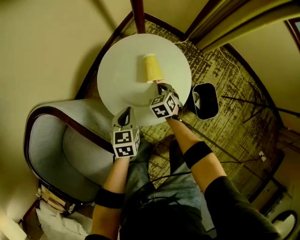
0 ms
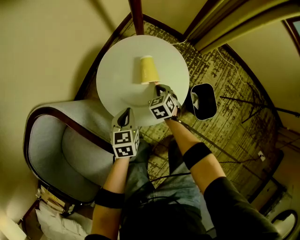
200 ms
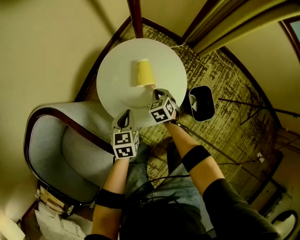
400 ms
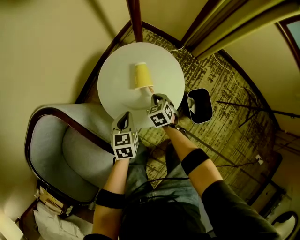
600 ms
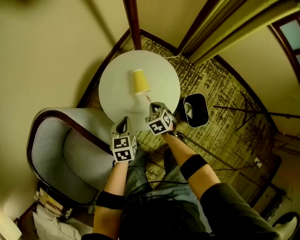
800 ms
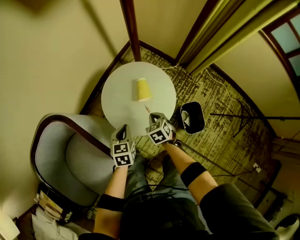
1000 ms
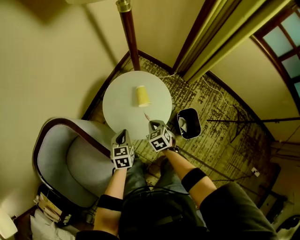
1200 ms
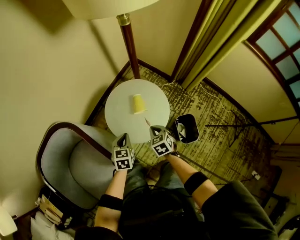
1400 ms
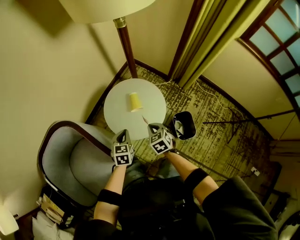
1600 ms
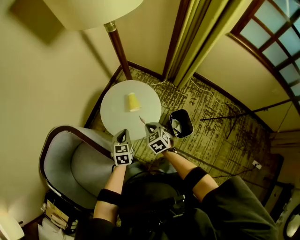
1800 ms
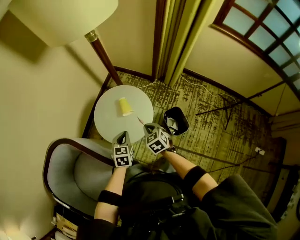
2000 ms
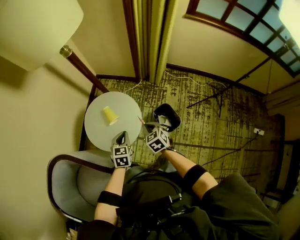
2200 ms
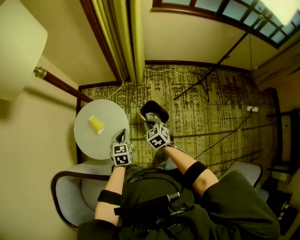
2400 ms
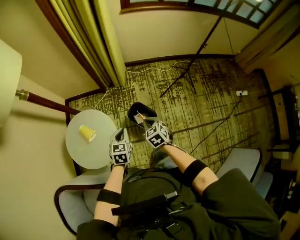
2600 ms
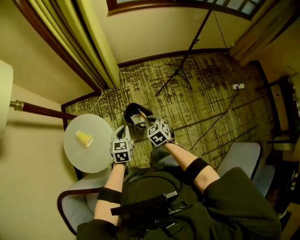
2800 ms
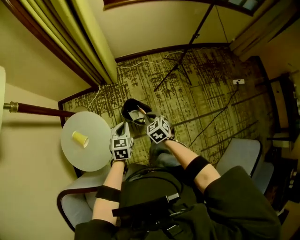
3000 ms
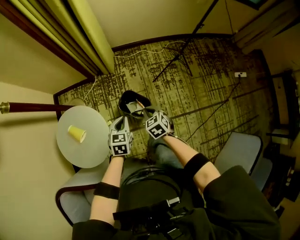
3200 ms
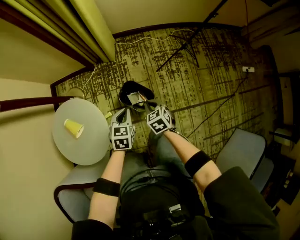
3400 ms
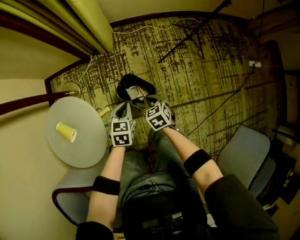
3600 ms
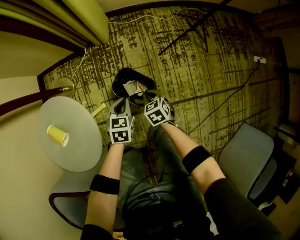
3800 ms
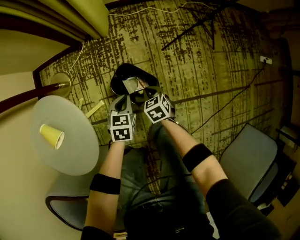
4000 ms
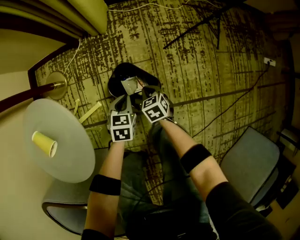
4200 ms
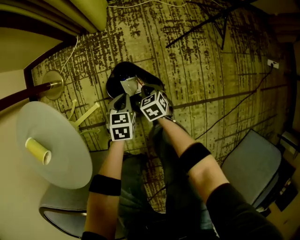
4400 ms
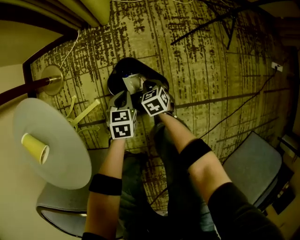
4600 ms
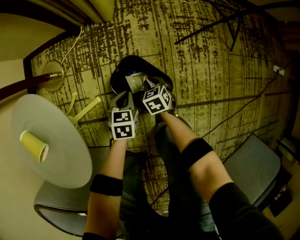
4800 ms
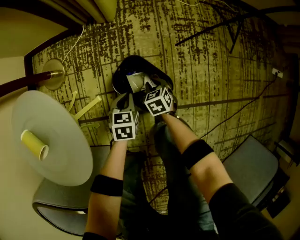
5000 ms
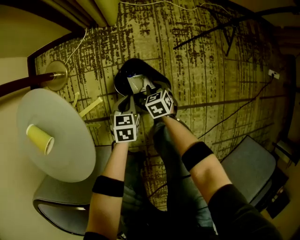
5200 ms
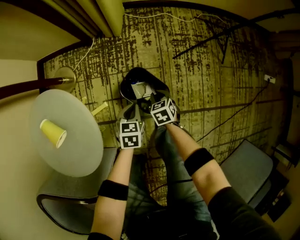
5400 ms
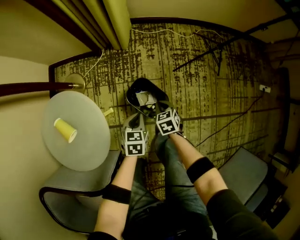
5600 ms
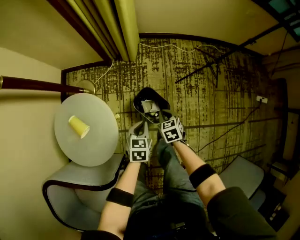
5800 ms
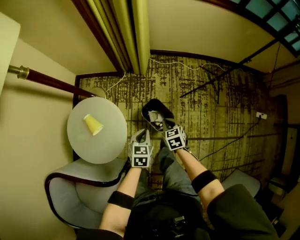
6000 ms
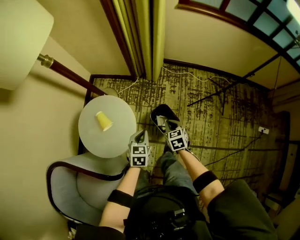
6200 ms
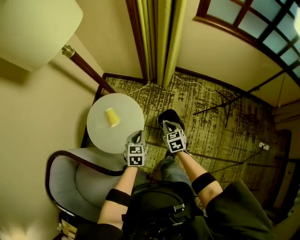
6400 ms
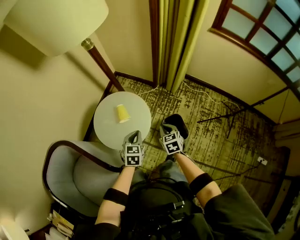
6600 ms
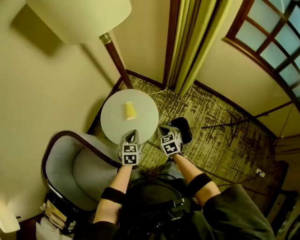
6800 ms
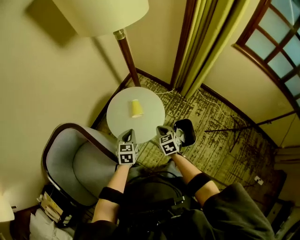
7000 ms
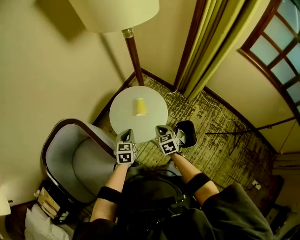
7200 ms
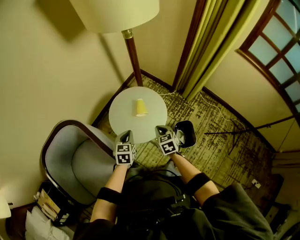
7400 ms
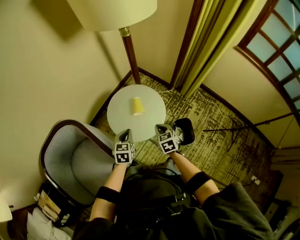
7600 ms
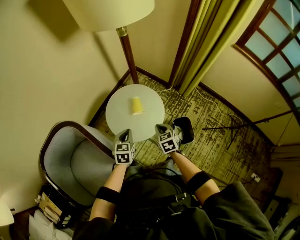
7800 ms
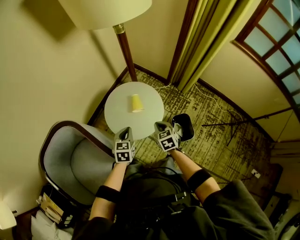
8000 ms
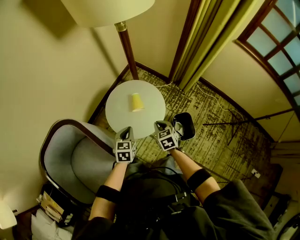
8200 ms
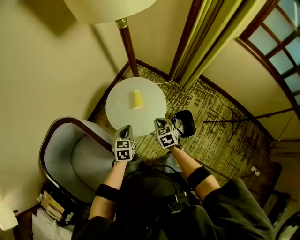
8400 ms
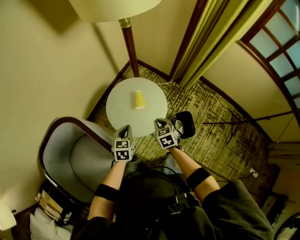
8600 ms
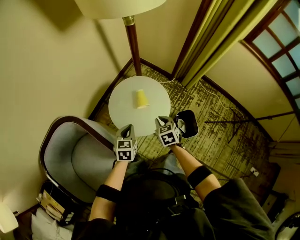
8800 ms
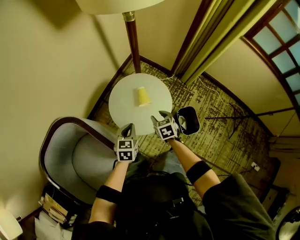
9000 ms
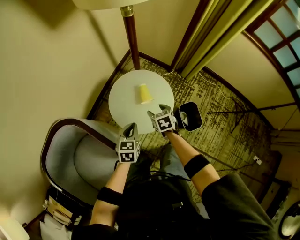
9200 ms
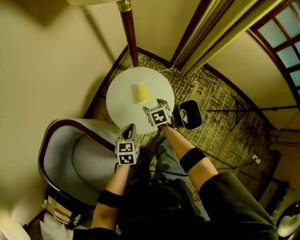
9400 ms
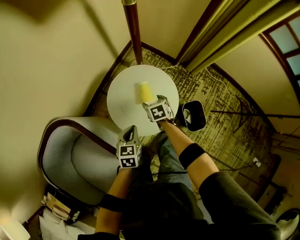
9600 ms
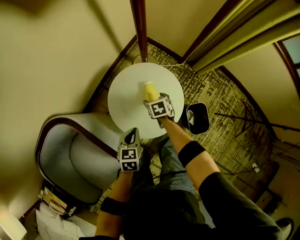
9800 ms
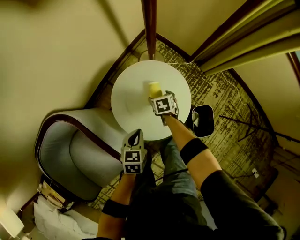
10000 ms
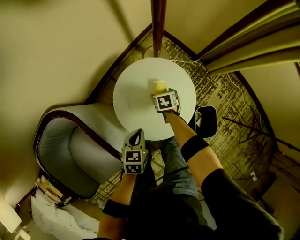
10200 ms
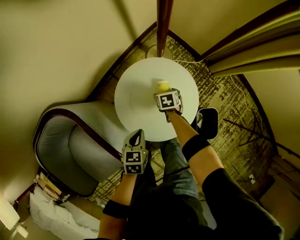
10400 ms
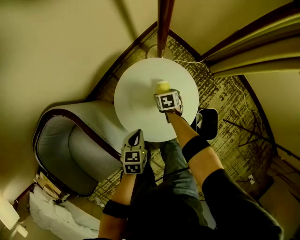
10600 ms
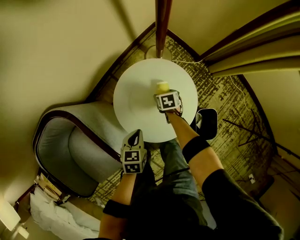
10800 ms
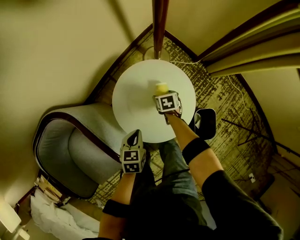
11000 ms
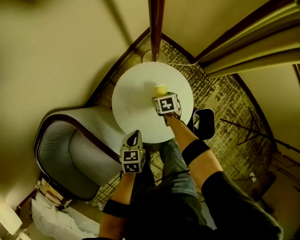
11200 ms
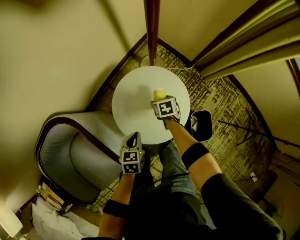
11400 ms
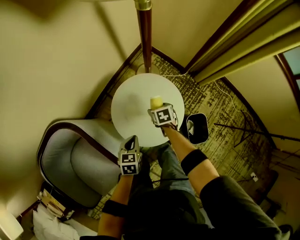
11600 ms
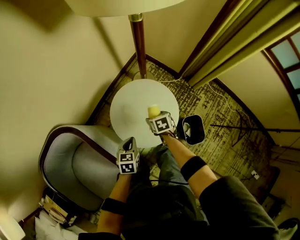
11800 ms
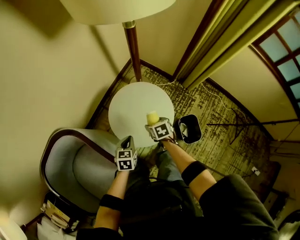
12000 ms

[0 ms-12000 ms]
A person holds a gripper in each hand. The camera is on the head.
0 ms to 1600 ms: The right gripper moves upward and backward, some 30 cm. The left gripper travels upward by about 15 cm.
1600 ms to 3000 ms: The left gripper changes place by approximately 40 cm, and turns by some 50 degrees. The right gripper ends up approximately 40 cm from where it was, and rotates some 40 degrees.
3000 ms to 4400 ms: The grippers both shift downward by roughly 50 cm.
4400 ms to 6000 ms: The two grippers go roughly 35 cm upward.
6000 ms to 7600 ms: The right gripper moves approximately 35 cm, and changes its angle by some 40 degrees. Meanwhile the left gripper moves approximately 40 cm, and turns by about 40 degrees.
7600 ms to 9000 ms: The left gripper changes place by about 5 cm, while the right gripper heads to the left and forward, covering some 10 cm, and opens.
9000 ms to 10400 ms: The left gripper is displaced downward by roughly 15 cm. Meanwhile the right gripper moves downward and forward, approximately 30 cm, and opens.
10400 ms to 12000 ms: The left gripper travels upward by about 10 cm; the right gripper shifts about 25 cm upward and backward.

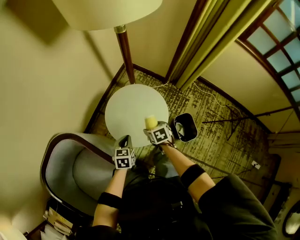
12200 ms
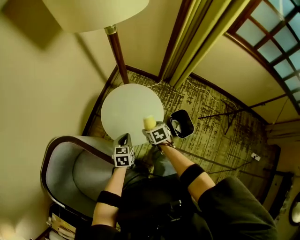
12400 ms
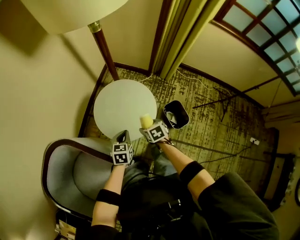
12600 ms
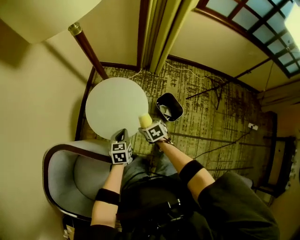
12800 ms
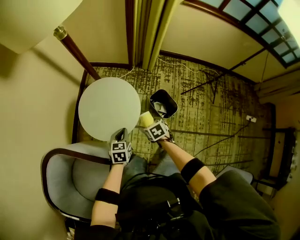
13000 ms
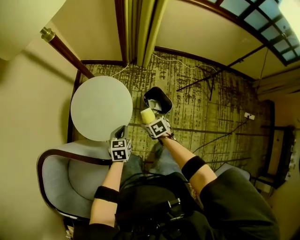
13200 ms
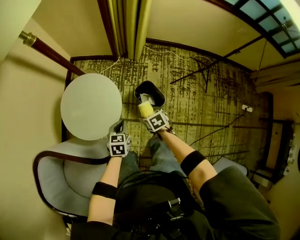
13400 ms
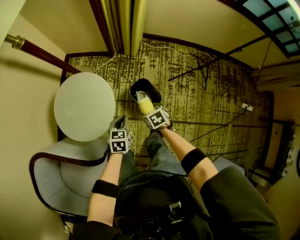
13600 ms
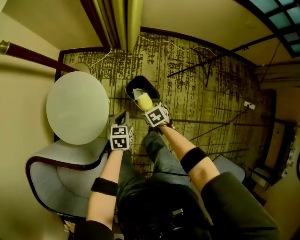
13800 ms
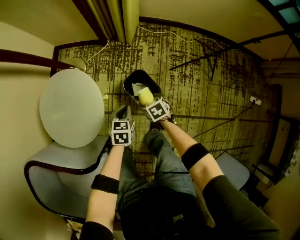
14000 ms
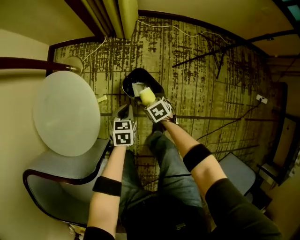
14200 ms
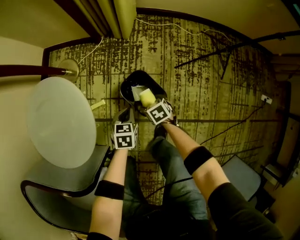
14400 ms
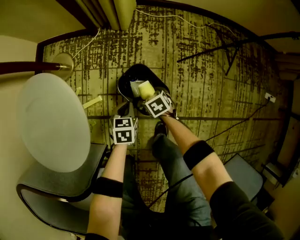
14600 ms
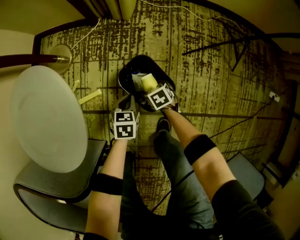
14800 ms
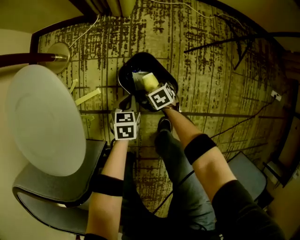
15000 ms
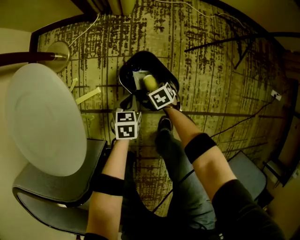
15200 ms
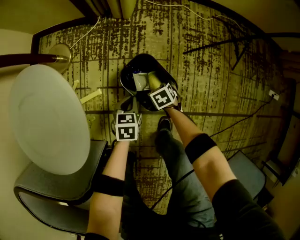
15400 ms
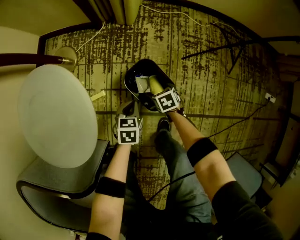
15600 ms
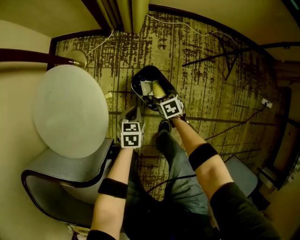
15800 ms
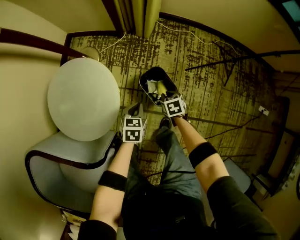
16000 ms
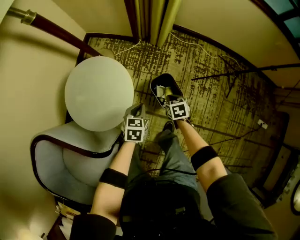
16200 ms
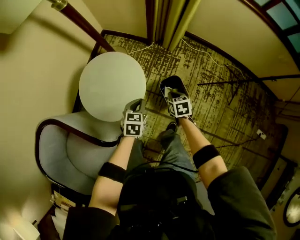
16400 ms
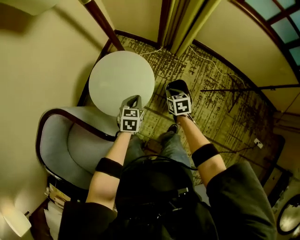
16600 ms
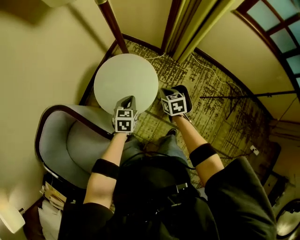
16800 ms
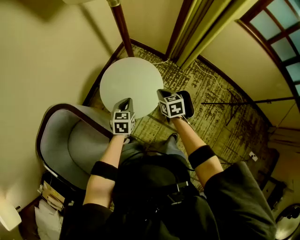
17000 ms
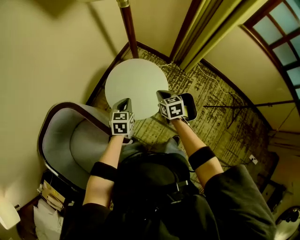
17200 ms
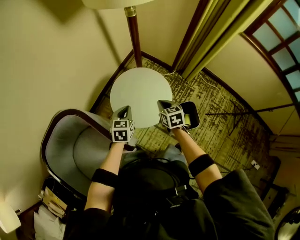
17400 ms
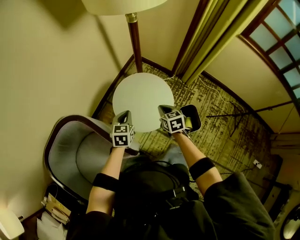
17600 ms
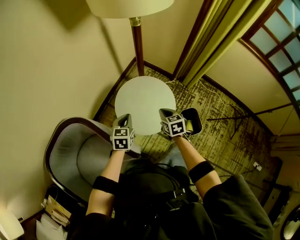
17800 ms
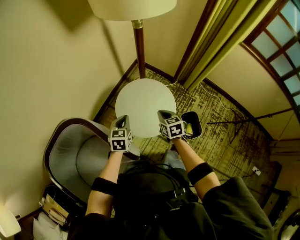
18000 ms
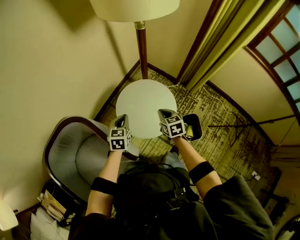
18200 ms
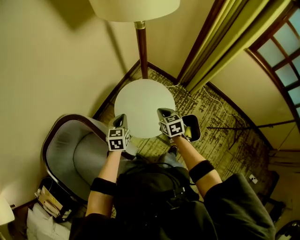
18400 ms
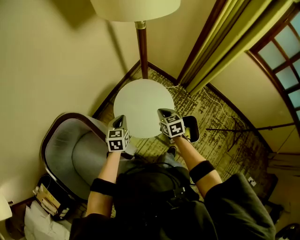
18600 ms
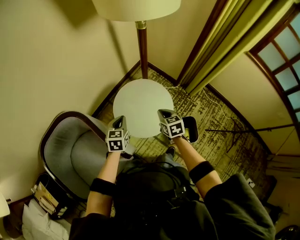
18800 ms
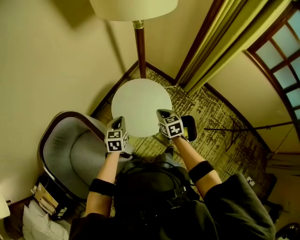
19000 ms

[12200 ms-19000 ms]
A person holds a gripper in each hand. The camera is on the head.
12200 ms to 13600 ms: The grippers both shift to the right by approximately 30 cm. The left gripper changes its angle by roughly 20 degrees.
13600 ms to 15000 ms: The grippers both shift downward by some 40 cm.
15000 ms to 16200 ms: Both grippers move upward, some 35 cm. The right gripper closes.
16200 ms to 17600 ms: The grippers both shift to the left and upward by roughly 40 cm. The left gripper changes its angle by approximately 30 degrees. The right gripper swivels roughly 30 degrees.
17600 ms to 19000 ms: The grippers stay close to where they were, moving slightly.

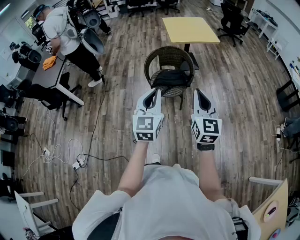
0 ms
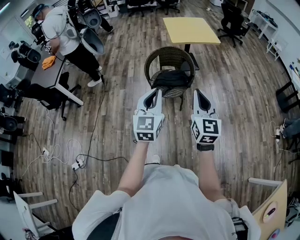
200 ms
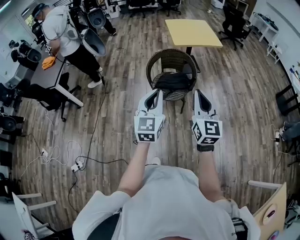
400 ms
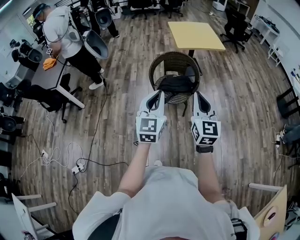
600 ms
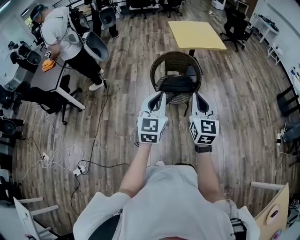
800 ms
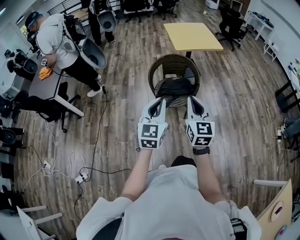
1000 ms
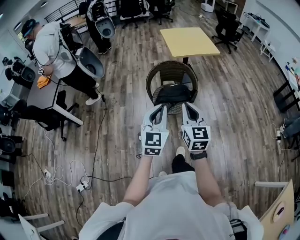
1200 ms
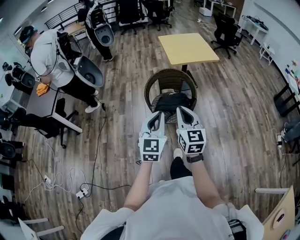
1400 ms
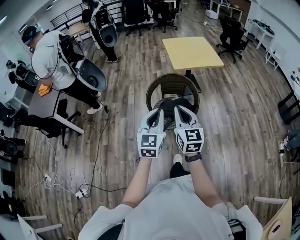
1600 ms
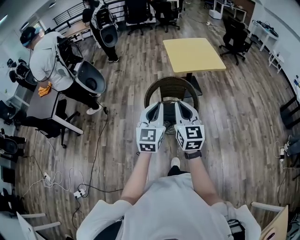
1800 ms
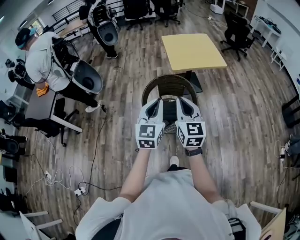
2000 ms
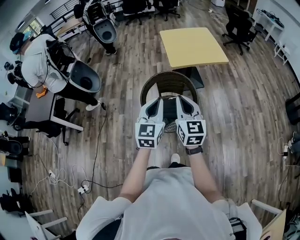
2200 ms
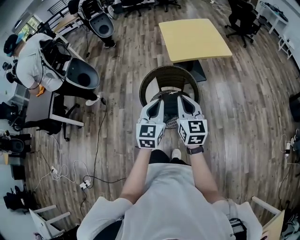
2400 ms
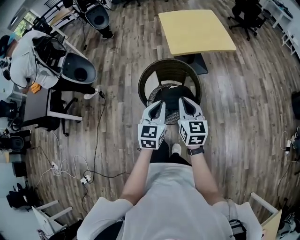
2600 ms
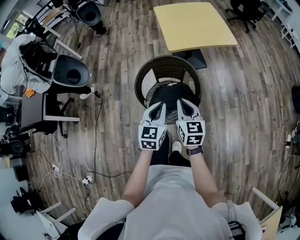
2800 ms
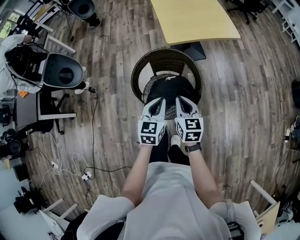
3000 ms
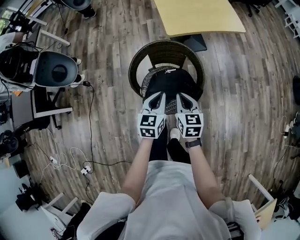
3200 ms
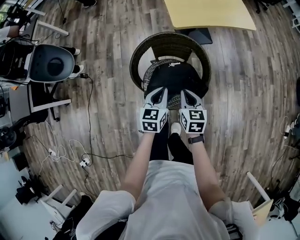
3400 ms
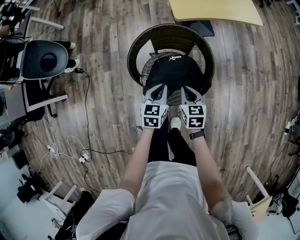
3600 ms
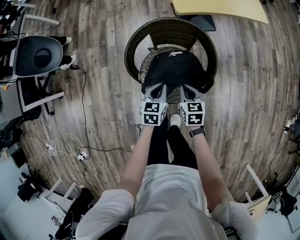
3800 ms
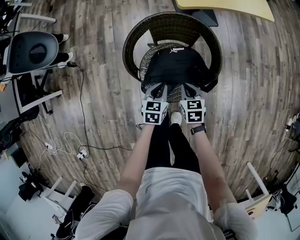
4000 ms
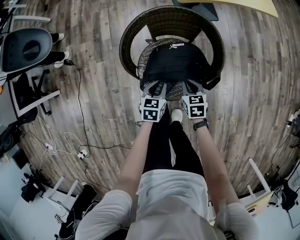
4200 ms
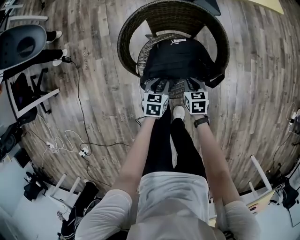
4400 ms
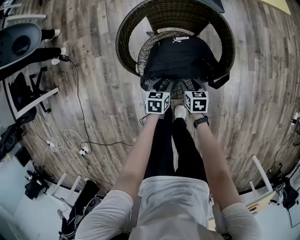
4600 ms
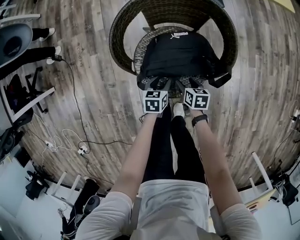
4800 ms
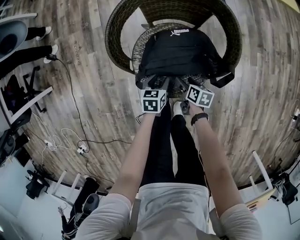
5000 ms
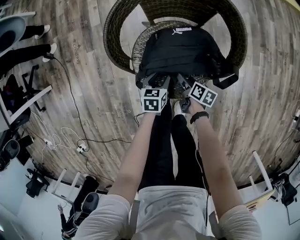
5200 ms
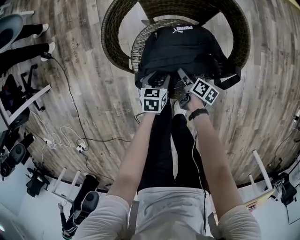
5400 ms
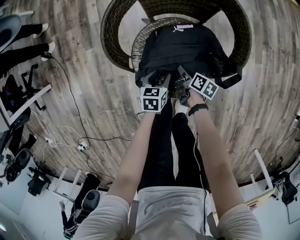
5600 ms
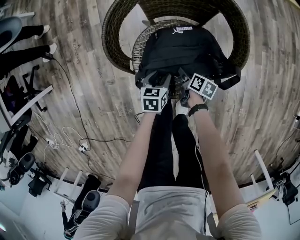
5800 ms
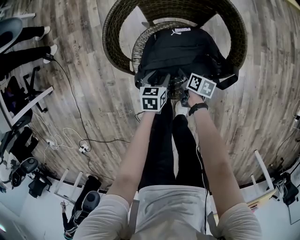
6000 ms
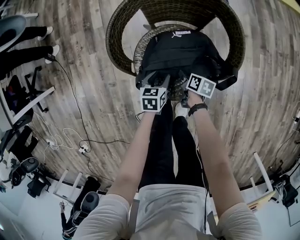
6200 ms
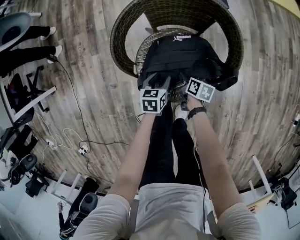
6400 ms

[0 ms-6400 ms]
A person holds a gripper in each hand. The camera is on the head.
0 ms to 1600 ms: The right gripper travels forward and to the left by some 25 cm; the left gripper travels forward by roughly 20 cm.
1600 ms to 3200 ms: Both grippers travel together forward and downward, roughly 40 cm. The right gripper changes its angle by some 30 degrees. Meanwhile the left gripper turns by about 30 degrees.
3200 ms to 4800 ms: Both grippers move downward, some 40 cm. The left gripper turns by roughly 30 degrees, and opens its fingers. Meanwhile the right gripper changes its angle by approximately 30 degrees, and opens its fingers.
4800 ms to 6400 ms: The right gripper changes its angle by roughly 20 degrees, and closes up.
